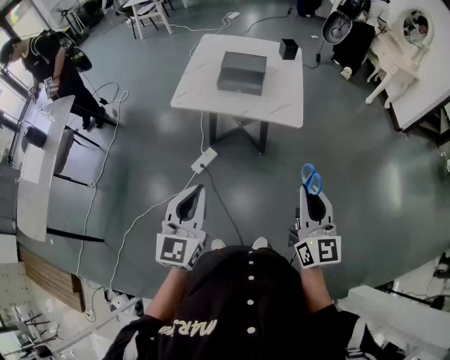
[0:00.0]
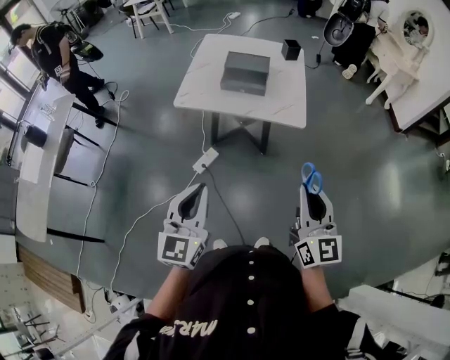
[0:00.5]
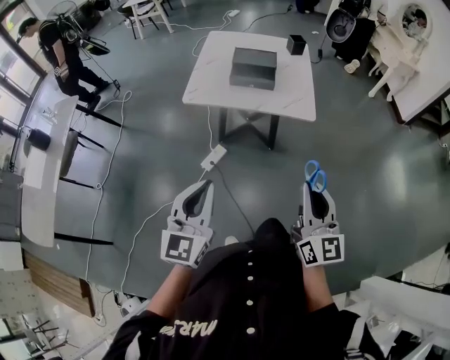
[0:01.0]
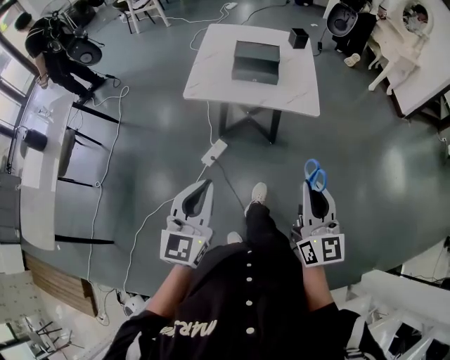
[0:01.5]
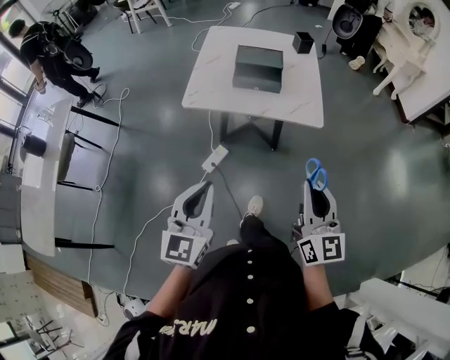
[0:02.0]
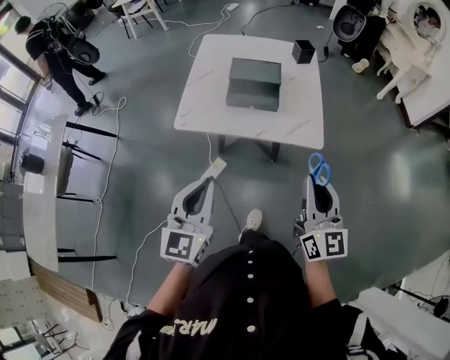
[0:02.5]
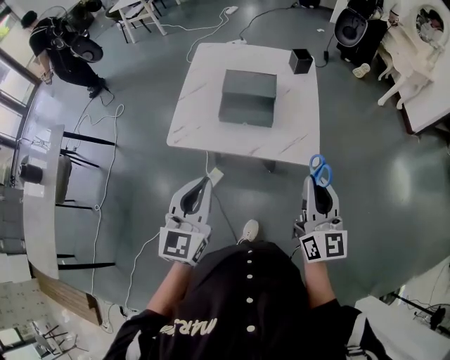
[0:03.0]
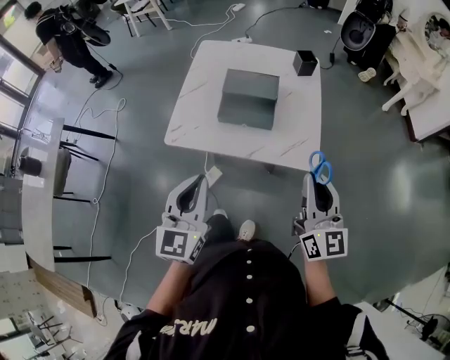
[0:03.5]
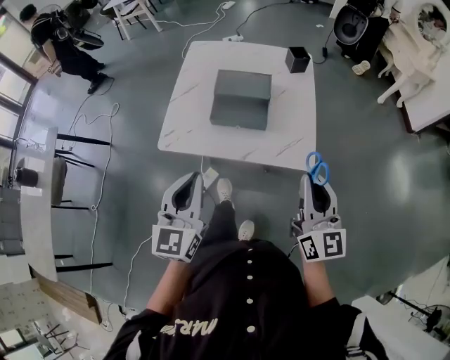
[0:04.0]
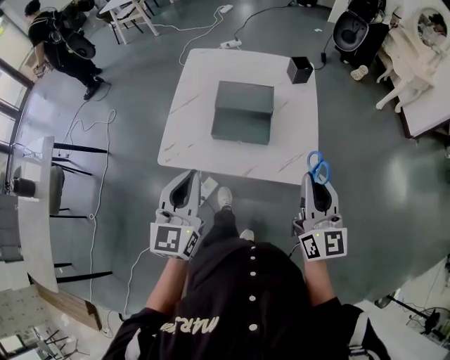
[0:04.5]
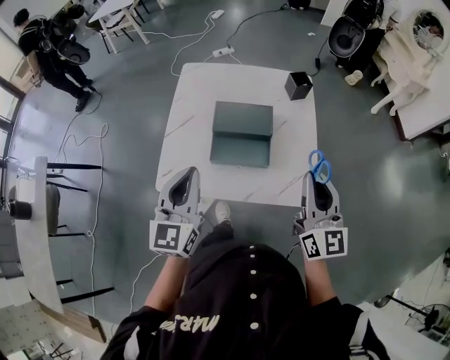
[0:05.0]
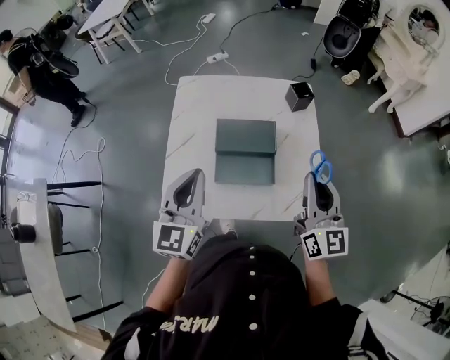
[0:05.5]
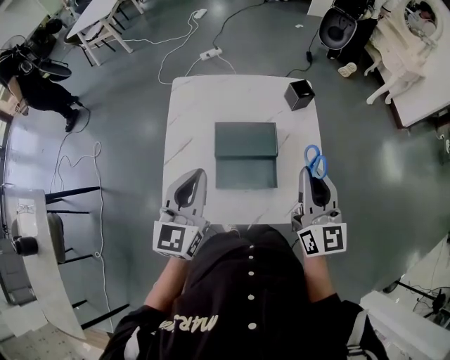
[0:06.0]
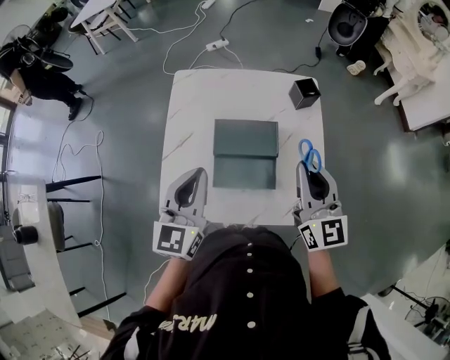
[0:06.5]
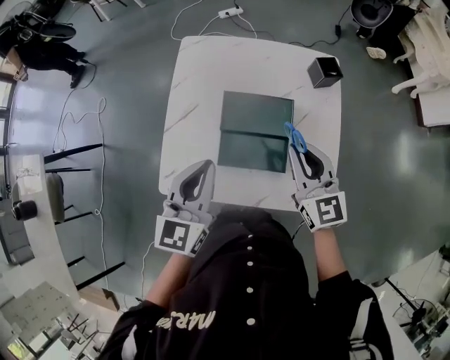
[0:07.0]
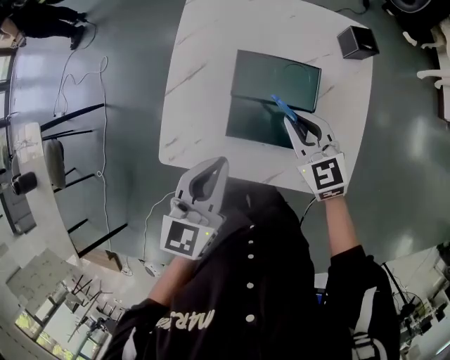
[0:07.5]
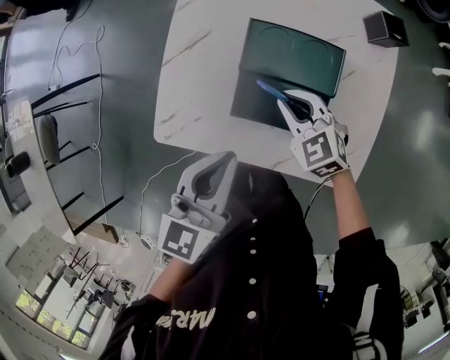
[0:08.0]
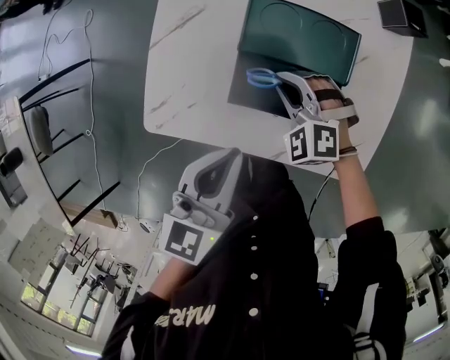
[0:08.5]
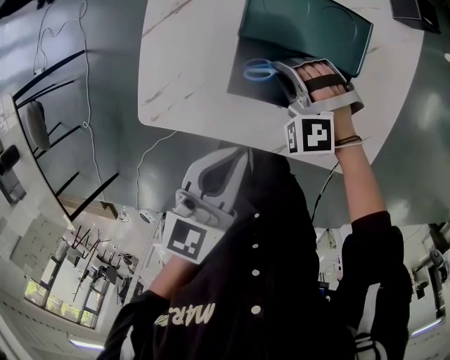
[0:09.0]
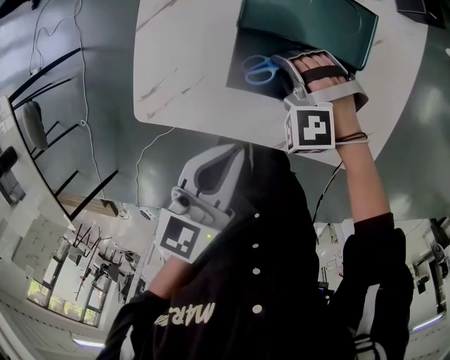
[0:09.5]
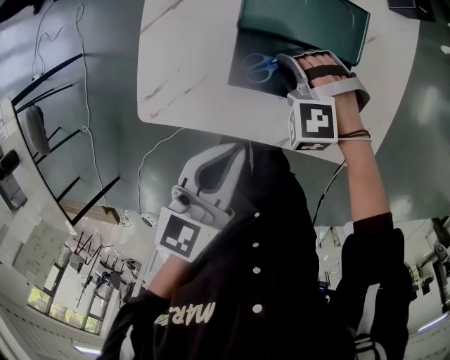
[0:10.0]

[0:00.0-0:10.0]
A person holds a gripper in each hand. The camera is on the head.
0.0 to 2.0 s: The two grippers go roughly 10 cm to the left and forward.
2.0 to 4.0 s: The two grippers go about 25 cm forward.
4.0 to 6.0 s: Both grippers travel together forward, roughly 30 cm.
6.0 to 8.0 s: The right gripper heads downward and to the left, covering about 30 cm, and tilts its fingers roughly 40 degrees downward; the left gripper goes about 10 cm downward, and changes its angle by approximately 20 degrees.
8.0 to 10.0 s: Both grippers travel together downward, roughly 10 cm. The right gripper twists about 40 degrees counterclockwise, seen from behind, and opens its fingers.

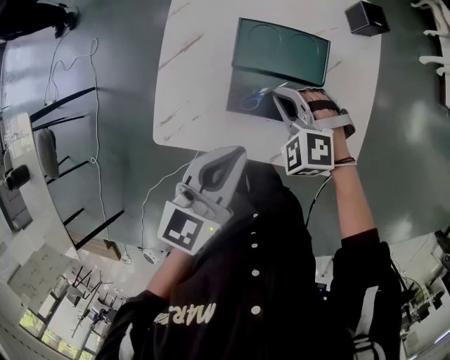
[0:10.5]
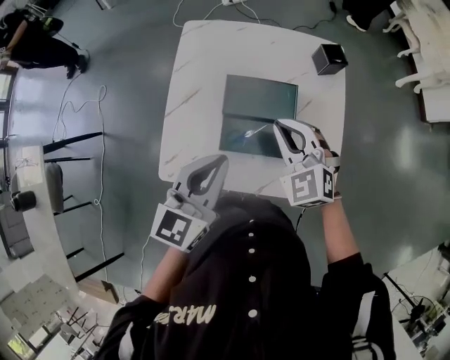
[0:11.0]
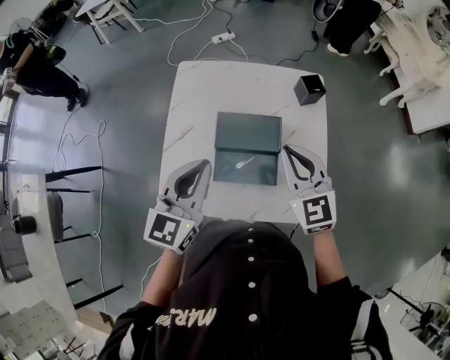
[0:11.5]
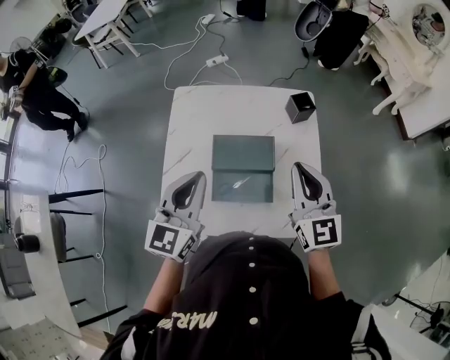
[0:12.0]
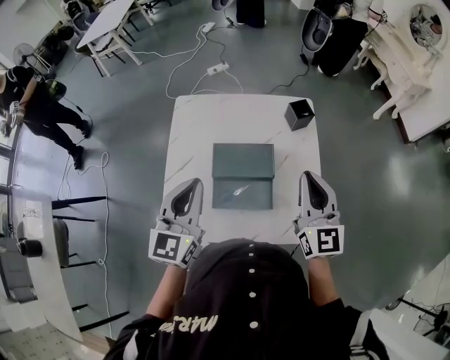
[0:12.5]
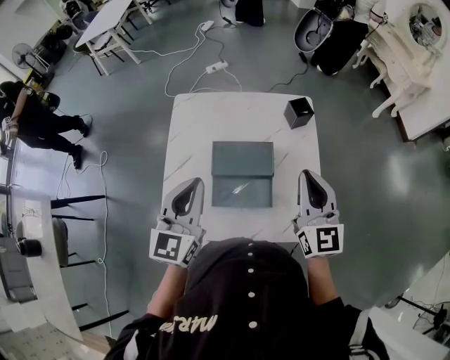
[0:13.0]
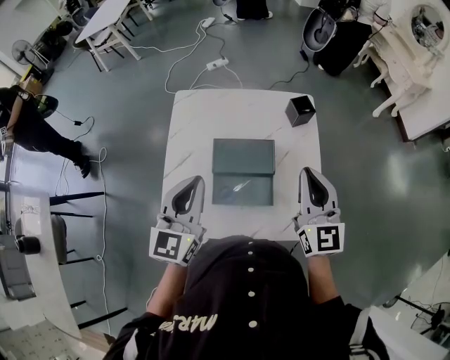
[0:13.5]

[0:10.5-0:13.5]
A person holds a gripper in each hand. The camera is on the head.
10.5 to 12.0 s: The right gripper travels upward and to the right by roughly 30 cm, and angles its fingers upward, by roughly 50 degrees, while the left gripper is displaced upward and forward by about 15 cm, and swivels some 20 degrees.
12.0 to 13.5 s: The grippers make only small movements.

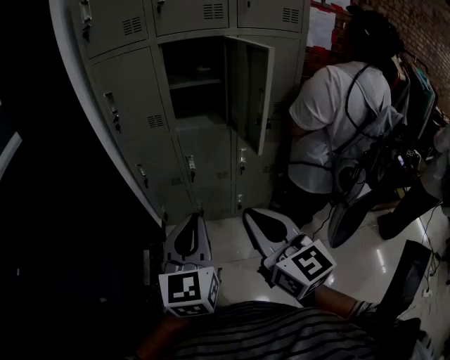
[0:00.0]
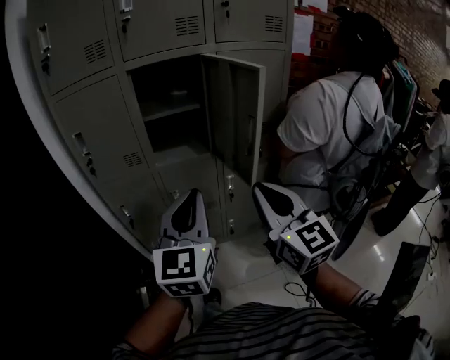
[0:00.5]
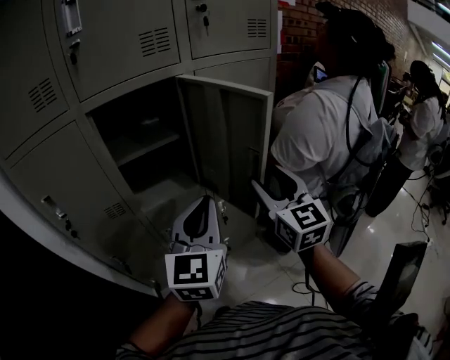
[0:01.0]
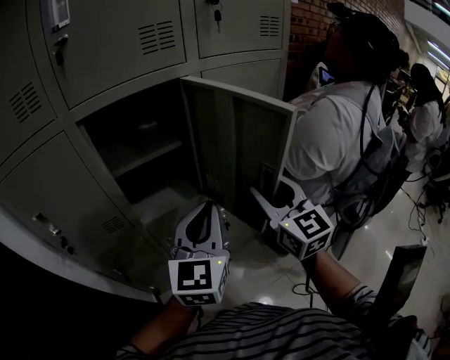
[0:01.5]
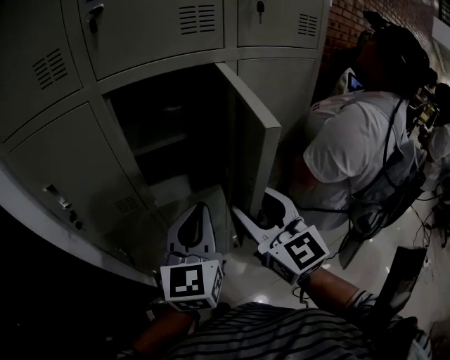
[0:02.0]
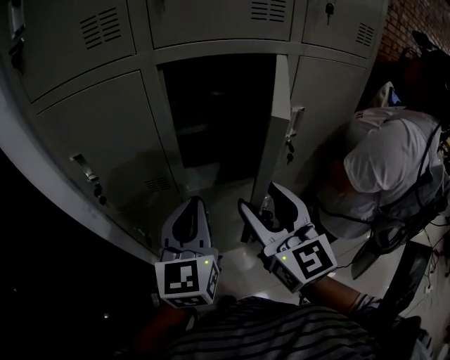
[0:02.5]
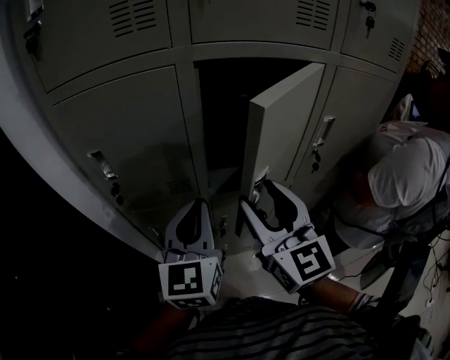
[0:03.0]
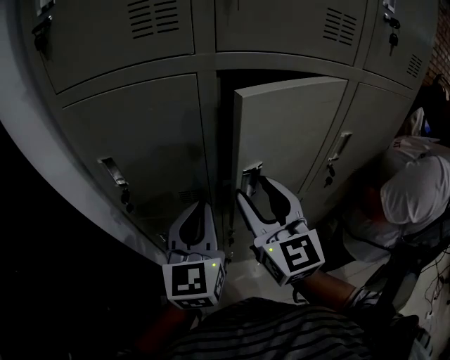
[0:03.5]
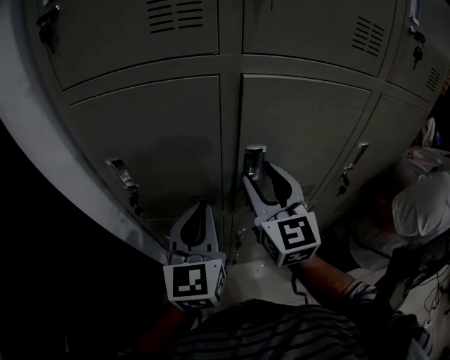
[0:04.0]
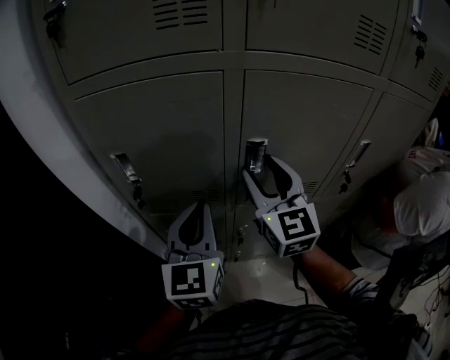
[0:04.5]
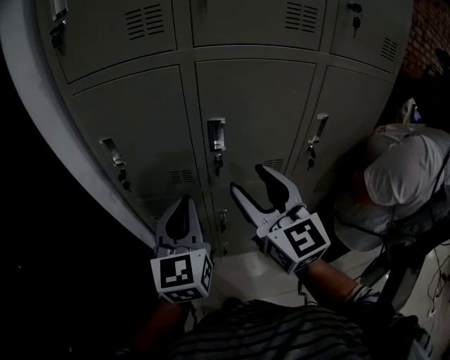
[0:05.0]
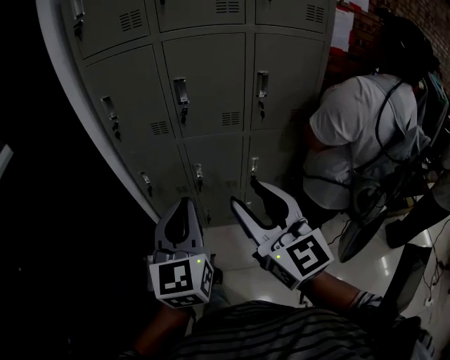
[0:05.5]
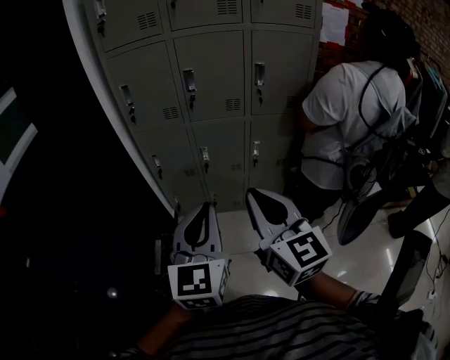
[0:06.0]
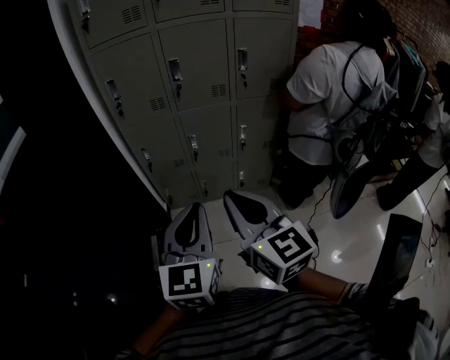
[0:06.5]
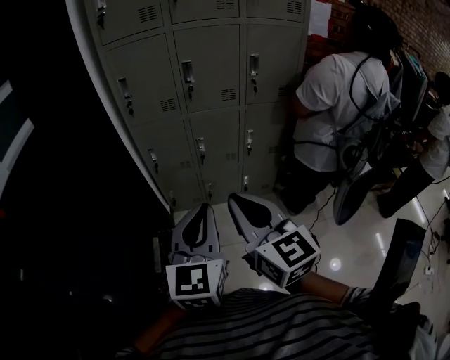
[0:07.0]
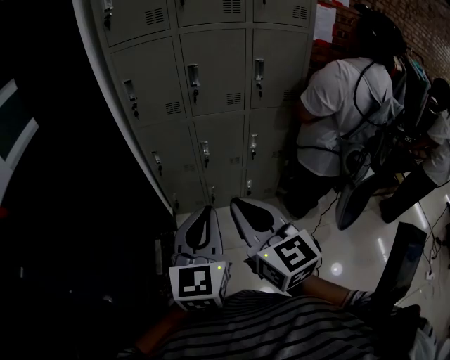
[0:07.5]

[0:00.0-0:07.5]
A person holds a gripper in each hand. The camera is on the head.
0.0 to 2.0 s: The right gripper ends up roughly 35 cm from where it was, and opens its fingers, while the left gripper changes place by approximately 35 cm.
2.0 to 4.0 s: The right gripper goes approximately 25 cm forward and to the left, while the left gripper travels to the left and forward by approximately 20 cm.
4.0 to 5.5 s: Both grippers travel together backward, roughly 40 cm.
5.5 to 7.5 s: The left gripper moves backward, approximately 15 cm, while the right gripper heads backward and to the left, covering some 20 cm, and closes up.

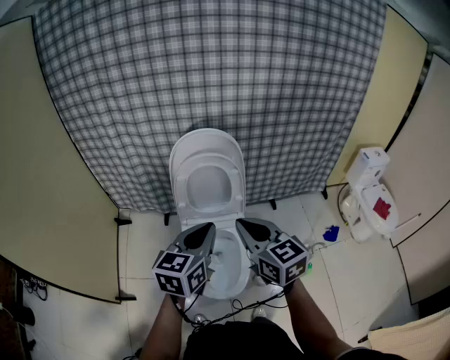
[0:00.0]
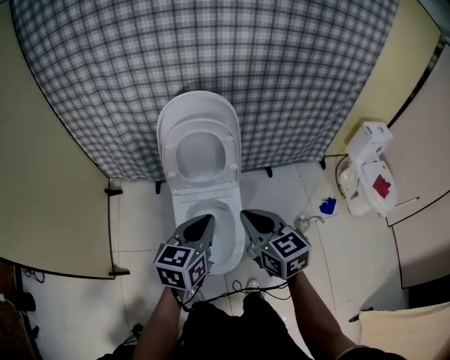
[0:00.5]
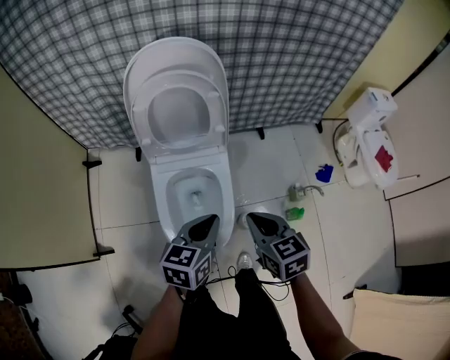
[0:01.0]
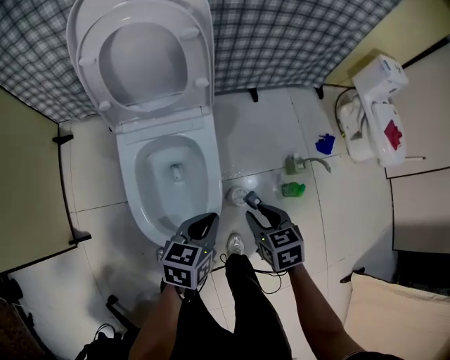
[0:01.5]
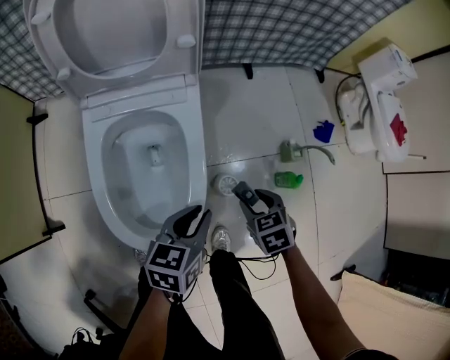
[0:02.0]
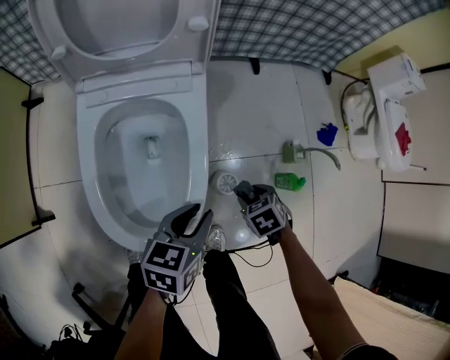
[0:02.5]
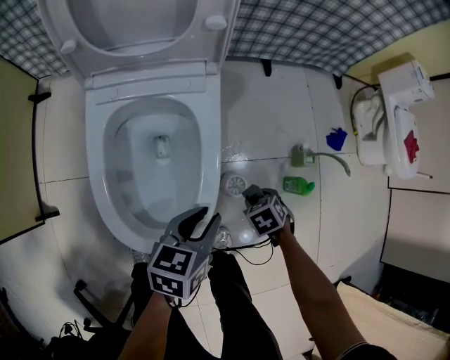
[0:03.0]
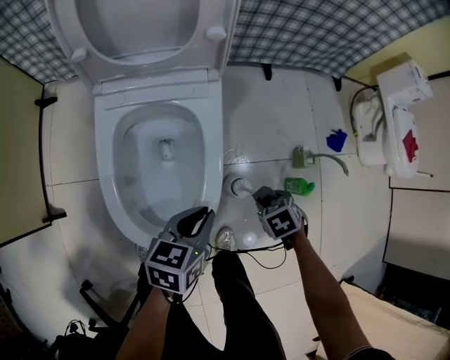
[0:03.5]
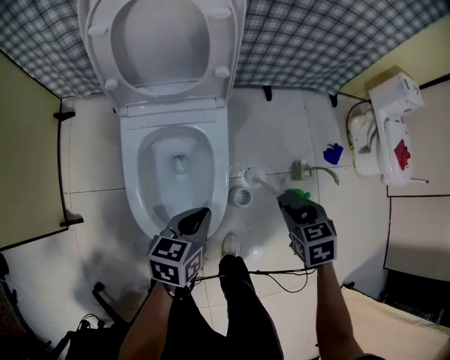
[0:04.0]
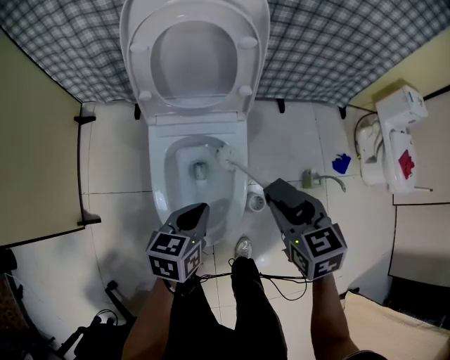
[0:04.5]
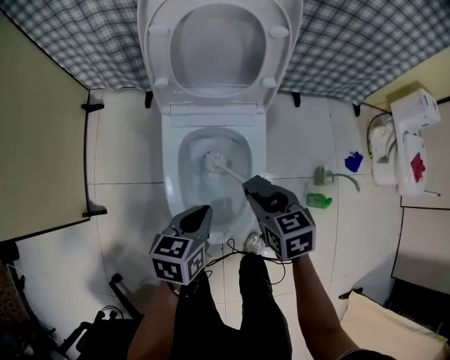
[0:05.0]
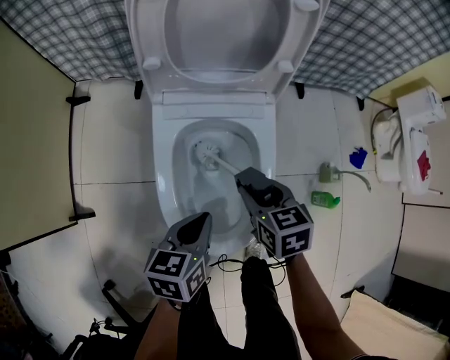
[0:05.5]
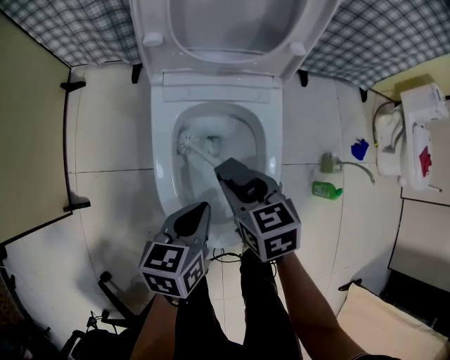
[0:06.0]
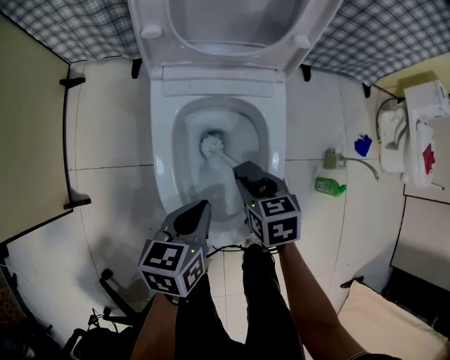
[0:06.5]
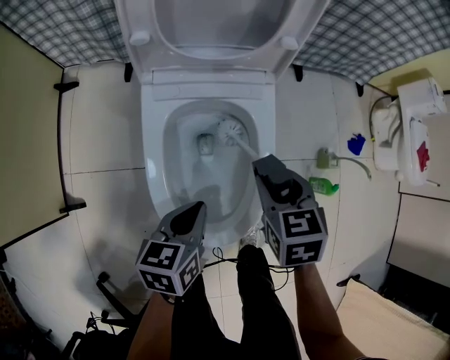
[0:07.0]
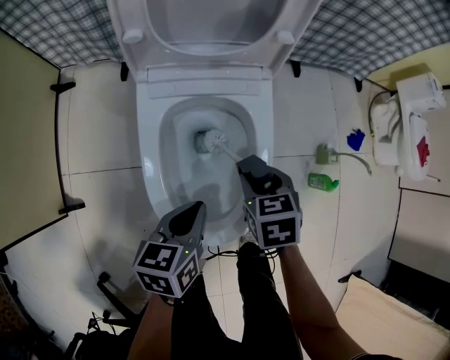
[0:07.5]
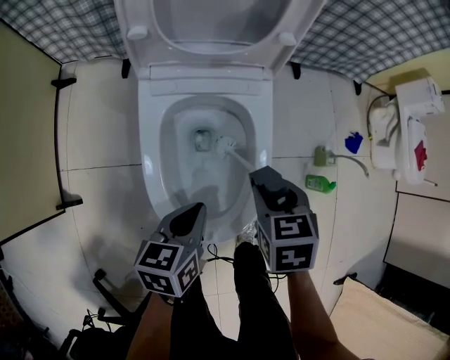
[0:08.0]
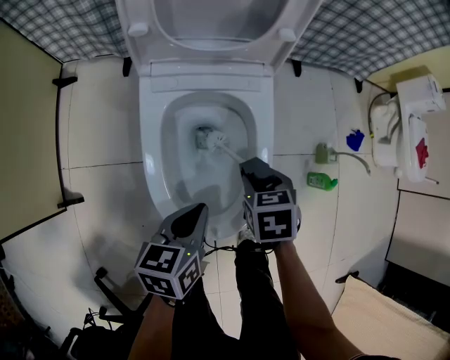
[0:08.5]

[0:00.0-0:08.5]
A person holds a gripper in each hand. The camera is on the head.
0.0 to 2.0 s: The right gripper moves downward and to the right, approximately 60 cm, tips its fingers downward by some 50 degrees, and opens; the left gripper shifts roughly 50 cm downward, and changes its angle by approximately 30 degrees.
2.0 to 4.0 s: The right gripper shifts roughly 15 cm upward. The left gripper changes place by some 10 cm.
4.0 to 6.5 s: The left gripper goes about 15 cm to the left and downward. Meanwhile the right gripper moves to the left and downward, roughly 30 cm.
6.5 to 8.5 s: The right gripper goes up and down, about 10 cm each way, reversing 3 times.
